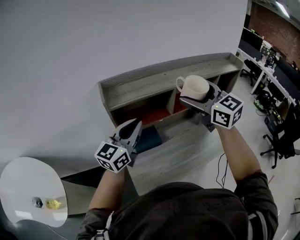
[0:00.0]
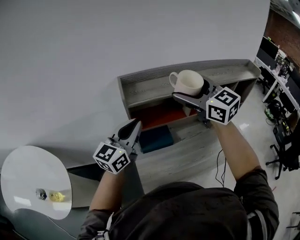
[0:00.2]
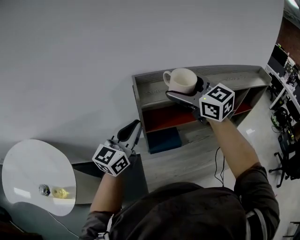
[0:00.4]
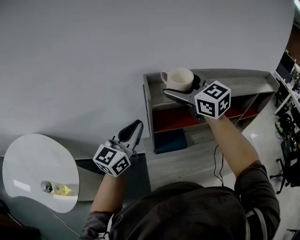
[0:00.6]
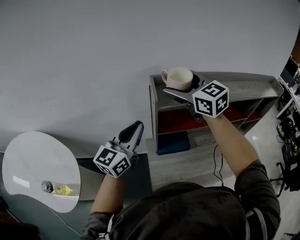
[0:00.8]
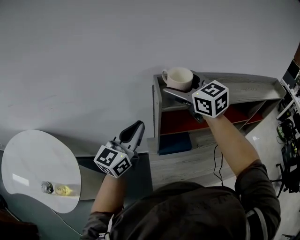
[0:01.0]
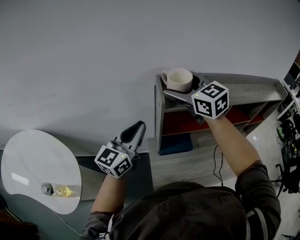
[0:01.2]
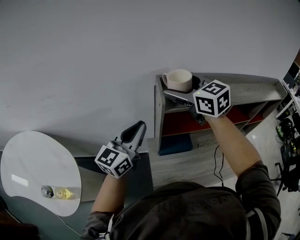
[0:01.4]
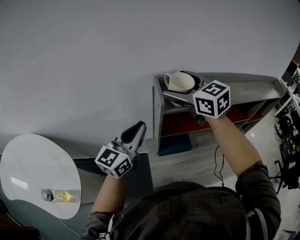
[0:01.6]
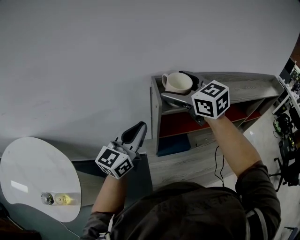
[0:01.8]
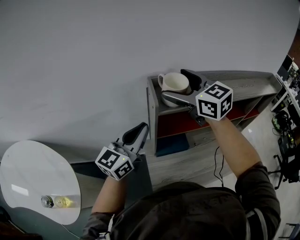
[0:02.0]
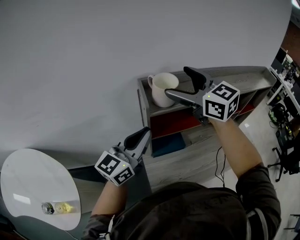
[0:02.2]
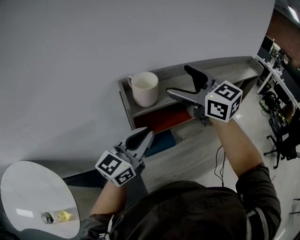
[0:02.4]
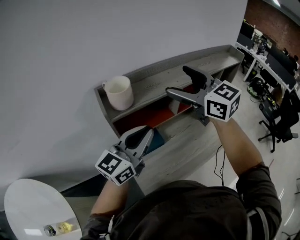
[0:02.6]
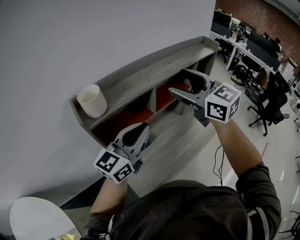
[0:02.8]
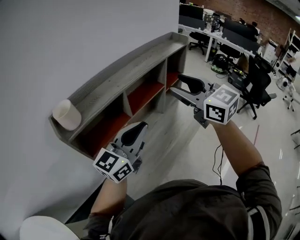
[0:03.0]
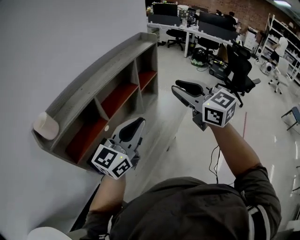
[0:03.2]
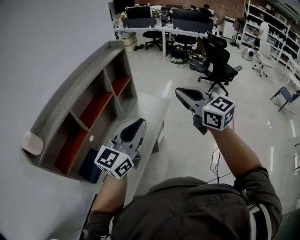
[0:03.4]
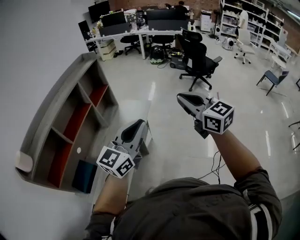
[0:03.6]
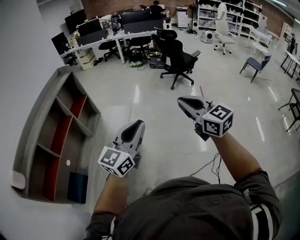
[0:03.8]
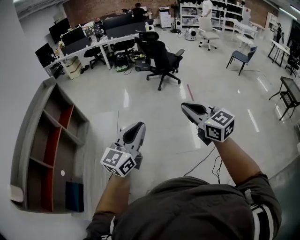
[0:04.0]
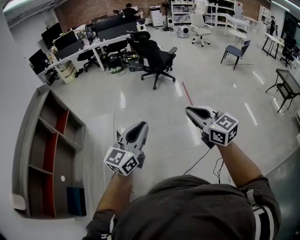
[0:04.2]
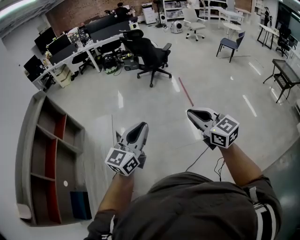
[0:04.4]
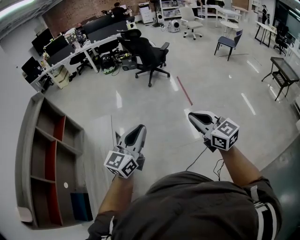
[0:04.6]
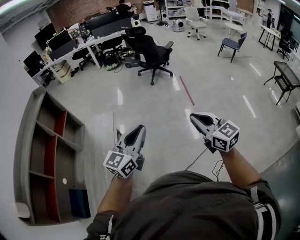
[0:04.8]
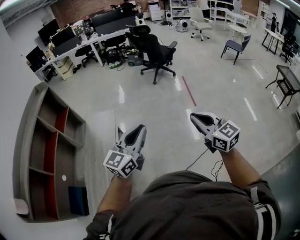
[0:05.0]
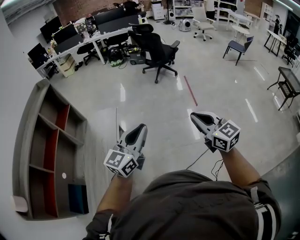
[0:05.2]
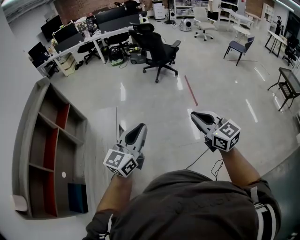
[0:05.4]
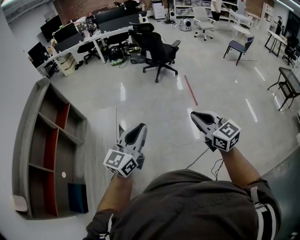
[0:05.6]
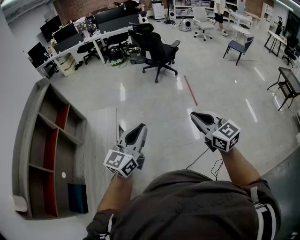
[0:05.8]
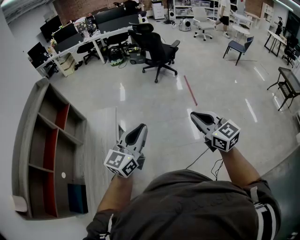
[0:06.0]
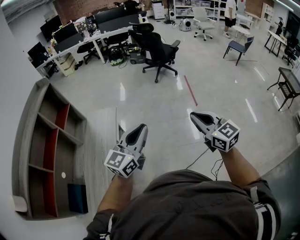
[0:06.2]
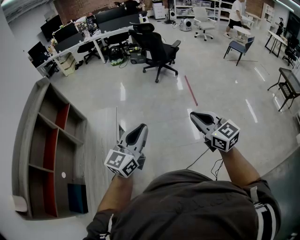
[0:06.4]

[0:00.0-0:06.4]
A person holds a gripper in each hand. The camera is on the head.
0:00.0 to 0:01.6: The right gripper goes about 30 cm to the left and forward, while the left gripper travels to the left by roughly 20 cm.
0:01.6 to 0:03.2: The pair of grippers is taken roughly 50 cm. The right gripper swivels roughly 50 degrees, and closes, while the left gripper swivels about 50 degrees.
0:03.2 to 0:04.8: Both grippers are carried about 50 cm. The left gripper swivels some 40 degrees; the right gripper swivels roughly 50 degrees.
0:04.8 to 0:06.4: There are only small adjustments of the grippers.

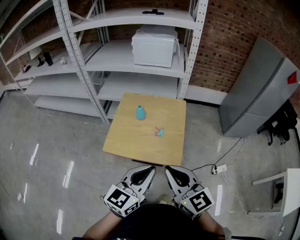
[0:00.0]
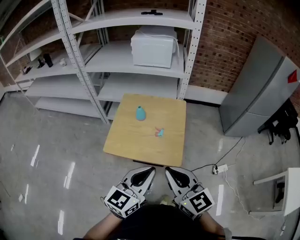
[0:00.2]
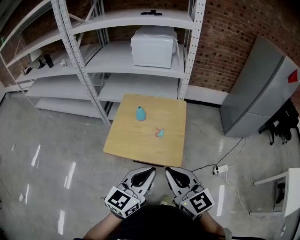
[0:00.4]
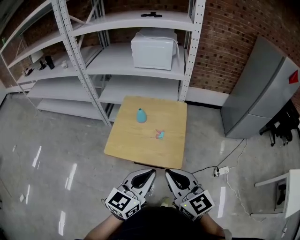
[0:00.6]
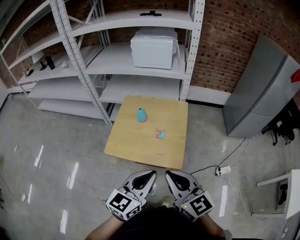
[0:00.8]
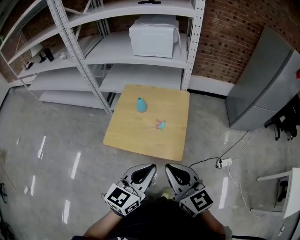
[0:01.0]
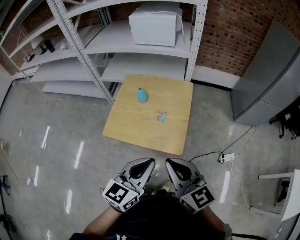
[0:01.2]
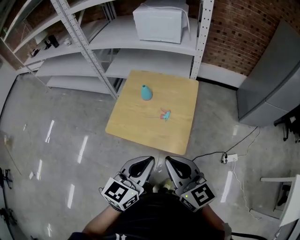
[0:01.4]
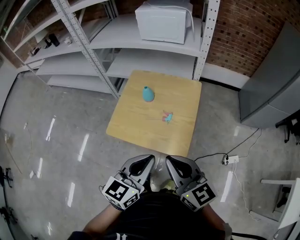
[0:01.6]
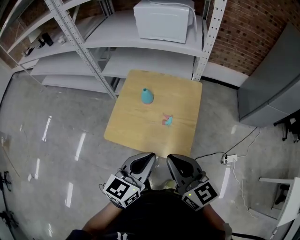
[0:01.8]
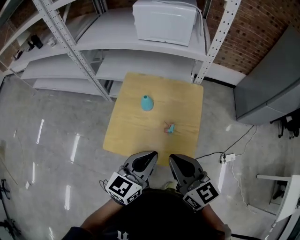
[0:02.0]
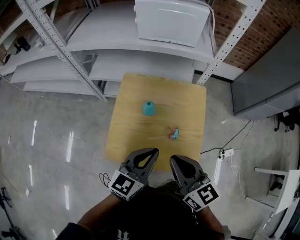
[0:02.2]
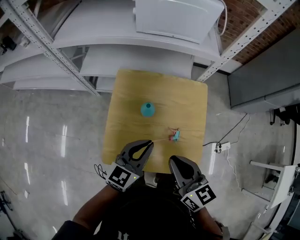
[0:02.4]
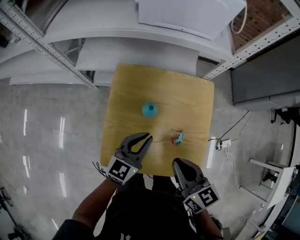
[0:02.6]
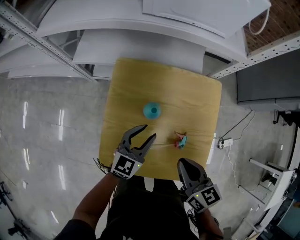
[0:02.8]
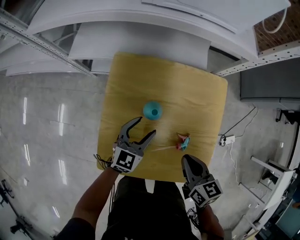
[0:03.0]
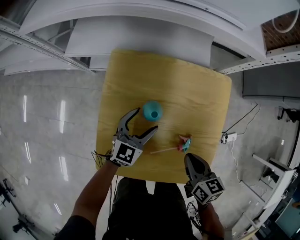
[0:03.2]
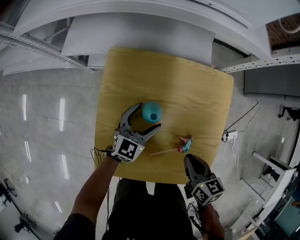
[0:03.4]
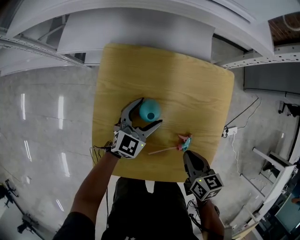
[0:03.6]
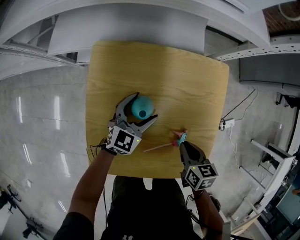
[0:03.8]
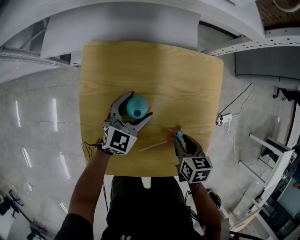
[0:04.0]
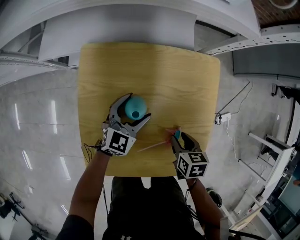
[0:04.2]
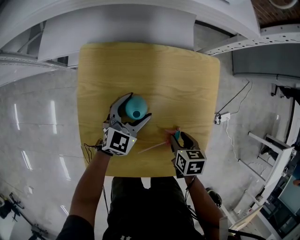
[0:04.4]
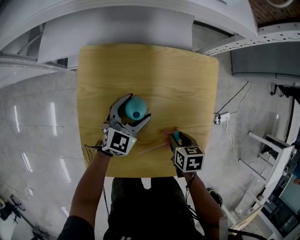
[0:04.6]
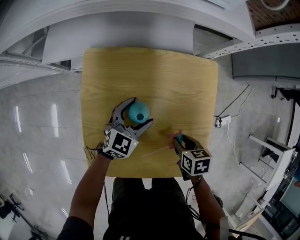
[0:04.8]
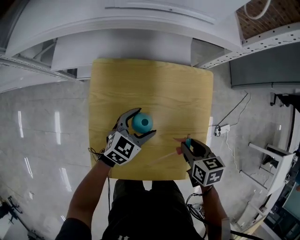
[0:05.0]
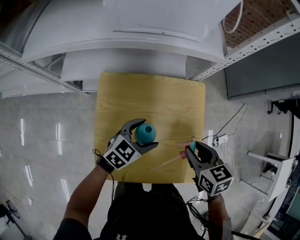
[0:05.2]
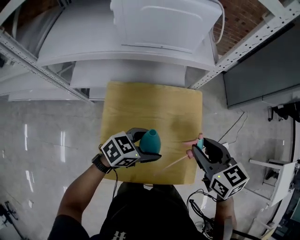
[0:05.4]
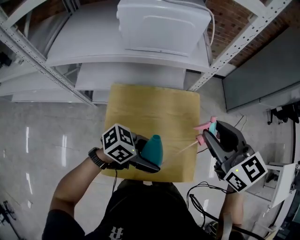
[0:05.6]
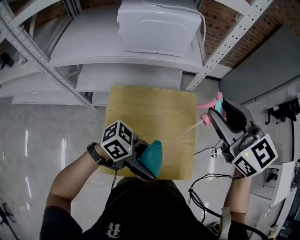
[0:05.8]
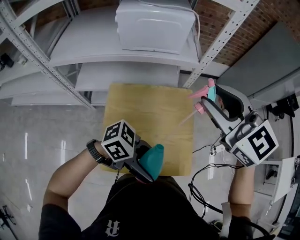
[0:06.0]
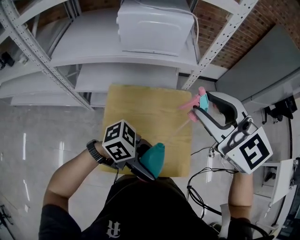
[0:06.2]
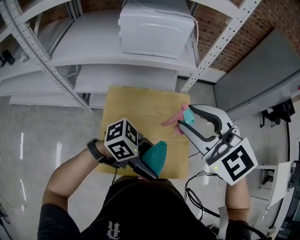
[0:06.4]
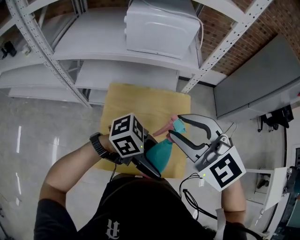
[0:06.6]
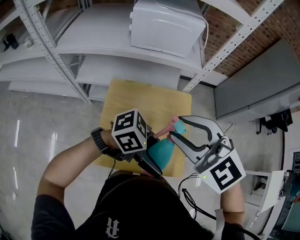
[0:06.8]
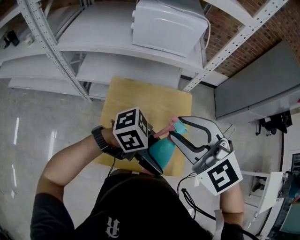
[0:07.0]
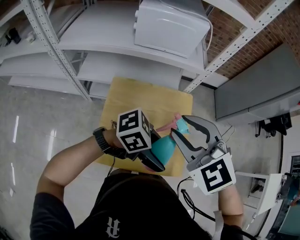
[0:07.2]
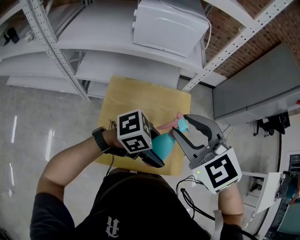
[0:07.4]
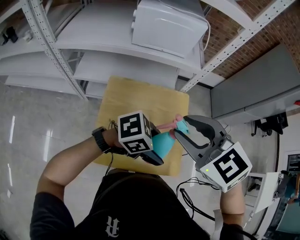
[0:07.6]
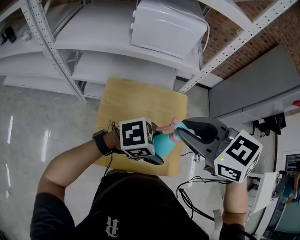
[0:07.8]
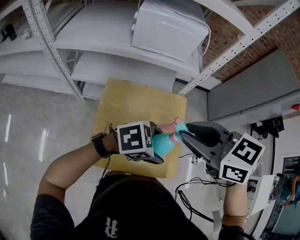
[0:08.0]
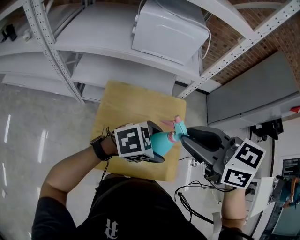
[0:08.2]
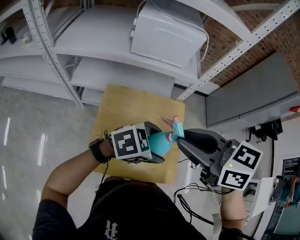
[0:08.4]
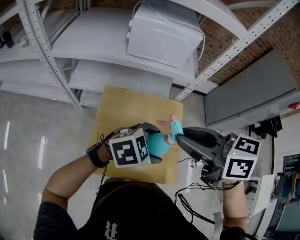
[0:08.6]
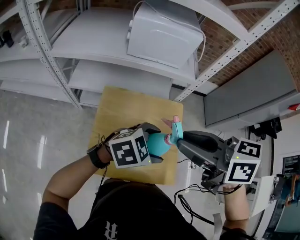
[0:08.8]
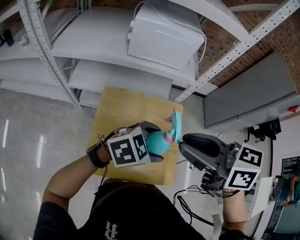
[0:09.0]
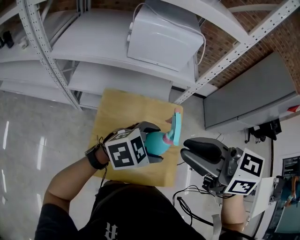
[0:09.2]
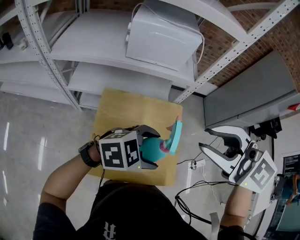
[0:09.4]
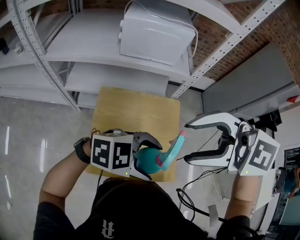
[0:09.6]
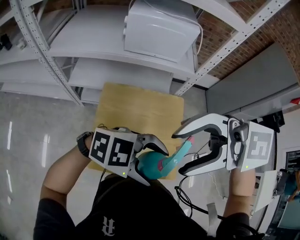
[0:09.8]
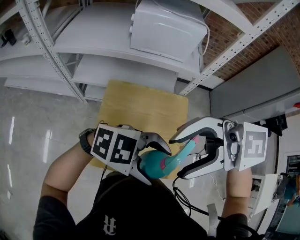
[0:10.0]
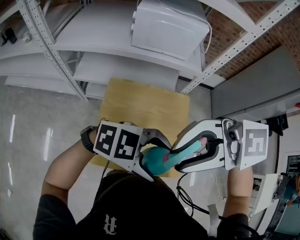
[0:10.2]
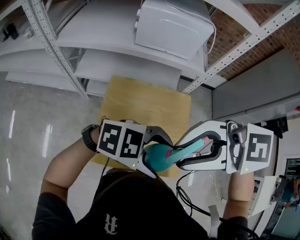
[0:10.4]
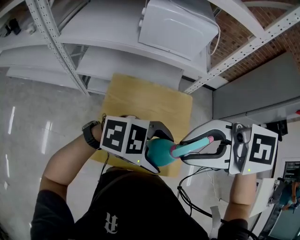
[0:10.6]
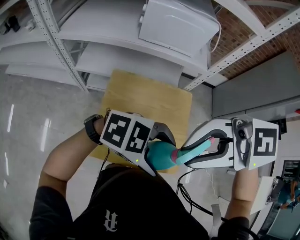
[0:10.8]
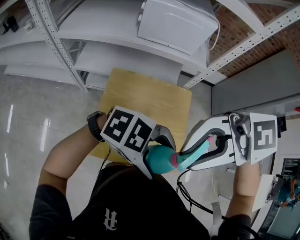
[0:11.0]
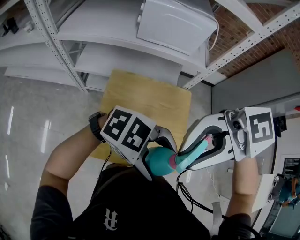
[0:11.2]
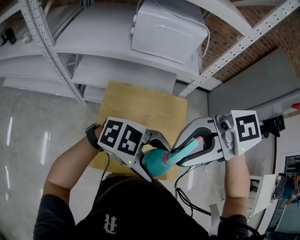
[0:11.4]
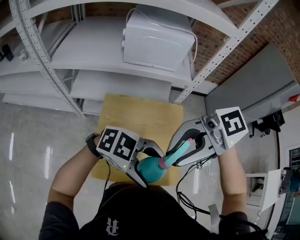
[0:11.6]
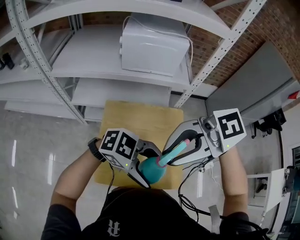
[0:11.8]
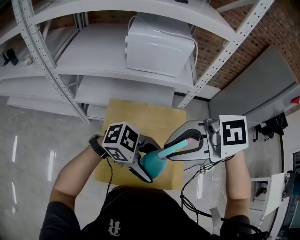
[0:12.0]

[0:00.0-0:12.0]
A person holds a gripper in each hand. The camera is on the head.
0:00.0 to 0:01.6: Both grippers move forward, some 5 cm.
0:01.6 to 0:03.0: The right gripper heads forward and downward, covering approximately 40 cm, and angles its fingers downward, by some 30 degrees. The left gripper moves forward, downward and to the left, approximately 50 cm, and opens its fingers.
0:03.0 to 0:04.4: The right gripper heads downward, covering about 15 cm, swivels approximately 30 degrees, and opens. The left gripper heads forward and downward, covering roughly 10 cm, and opens.
0:04.4 to 0:06.0: The right gripper moves upward, about 60 cm, and tips its fingers upward by approximately 50 degrees. The left gripper shifts approximately 35 cm upward, and swivels about 80 degrees.
0:06.0 to 0:07.6: The left gripper ends up some 5 cm from where it was, and turns by some 30 degrees. Meanwhile the right gripper ends up some 15 cm from where it was, and rotates approximately 20 degrees.
0:07.6 to 0:09.0: The right gripper turns by approximately 40 degrees; the left gripper moves some 10 cm, and changes its angle by roughly 30 degrees.
0:09.0 to 0:10.4: The left gripper changes place by about 10 cm, and swivels roughly 30 degrees, while the right gripper shifts by about 10 cm, changes its angle by some 60 degrees, and opens, then closes once more.
0:10.4 to 0:12.0: The grippers stay close to where they were, moving slightly.

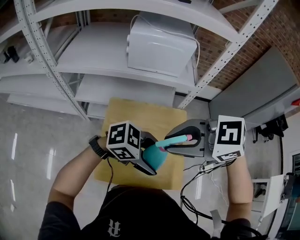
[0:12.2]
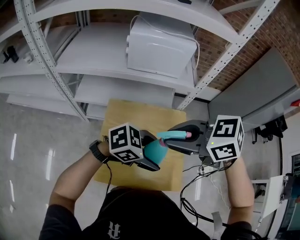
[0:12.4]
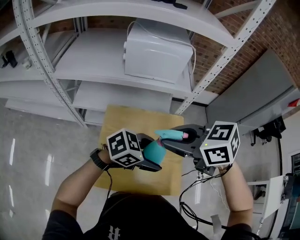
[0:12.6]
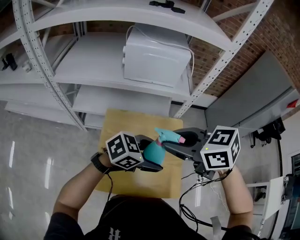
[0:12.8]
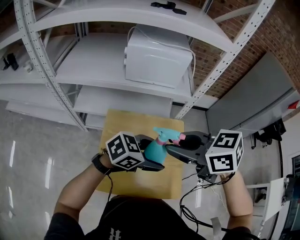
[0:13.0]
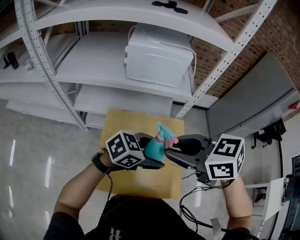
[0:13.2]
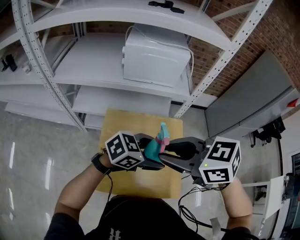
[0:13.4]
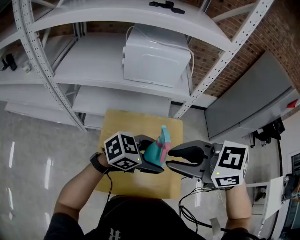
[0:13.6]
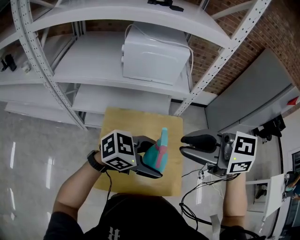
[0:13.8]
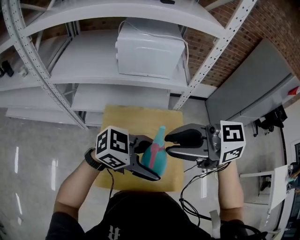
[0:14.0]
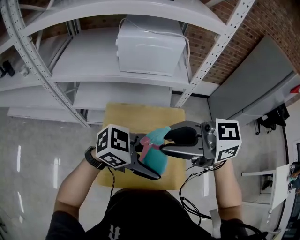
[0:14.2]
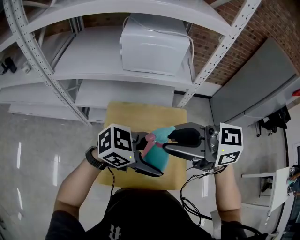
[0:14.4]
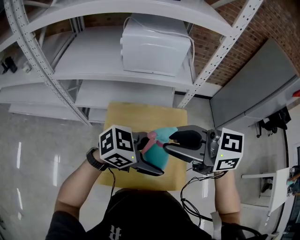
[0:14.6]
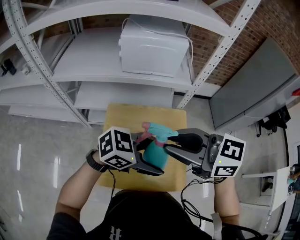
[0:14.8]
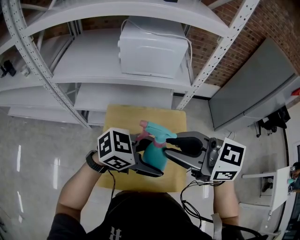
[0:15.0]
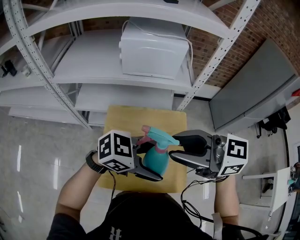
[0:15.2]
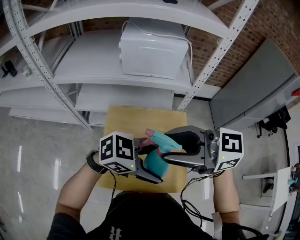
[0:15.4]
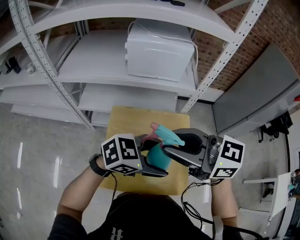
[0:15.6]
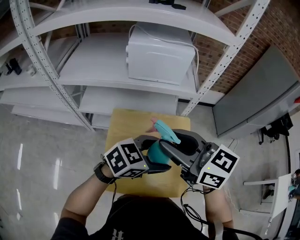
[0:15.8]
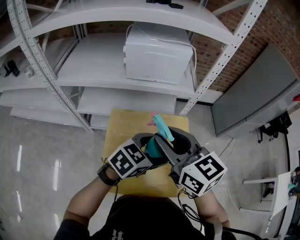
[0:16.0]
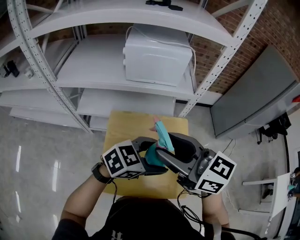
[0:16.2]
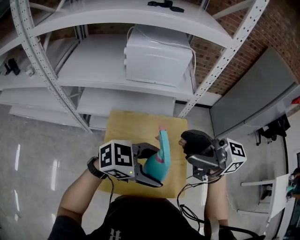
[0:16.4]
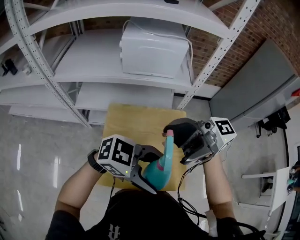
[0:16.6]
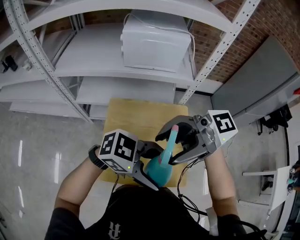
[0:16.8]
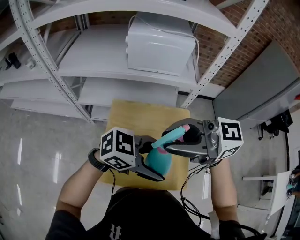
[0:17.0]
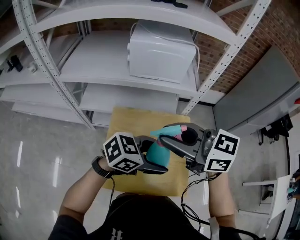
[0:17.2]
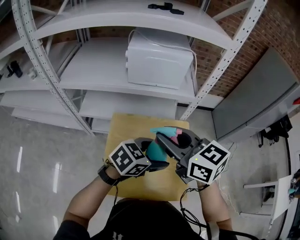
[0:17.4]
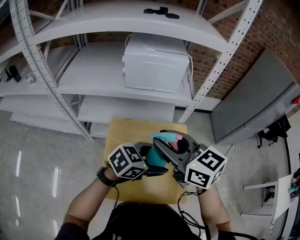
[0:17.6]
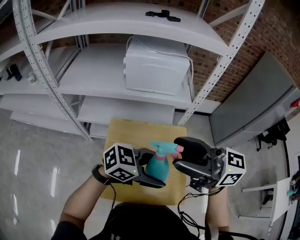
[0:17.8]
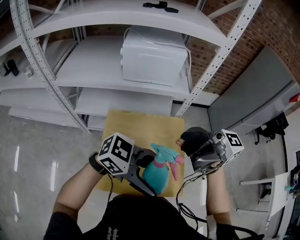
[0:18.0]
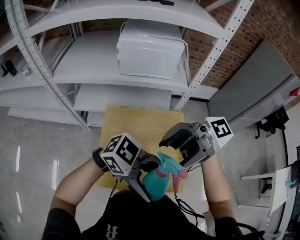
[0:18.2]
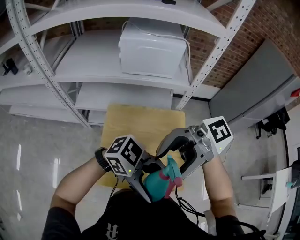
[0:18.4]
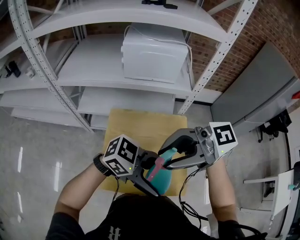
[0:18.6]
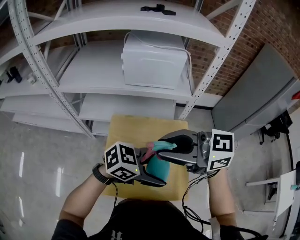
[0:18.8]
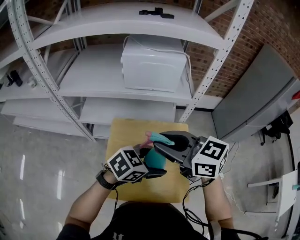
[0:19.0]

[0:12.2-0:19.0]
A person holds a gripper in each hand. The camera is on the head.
0:12.2 to 0:13.6: The left gripper shifts by about 5 cm, and rotates approximately 20 degrees.
0:13.6 to 0:15.0: The right gripper swivels some 20 degrees.
0:16.2 to 0:17.6: The right gripper opens, then closes again. Meanwhile the left gripper goes upward and returns, roughly 5 cm each way.
0:17.6 to 0:19.0: The right gripper moves about 10 cm upward and comes back, and opens, then closes once more, while the left gripper travels upward and back again, about 10 cm each way.
